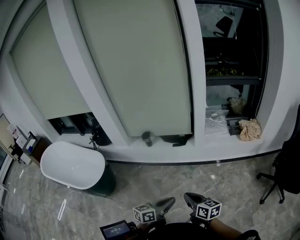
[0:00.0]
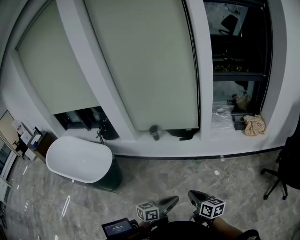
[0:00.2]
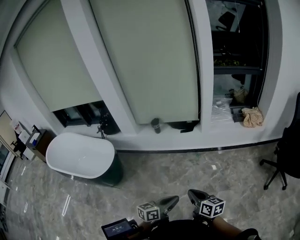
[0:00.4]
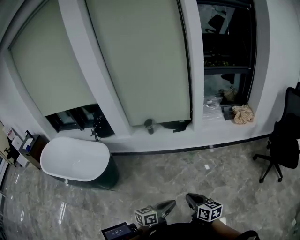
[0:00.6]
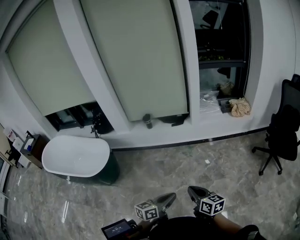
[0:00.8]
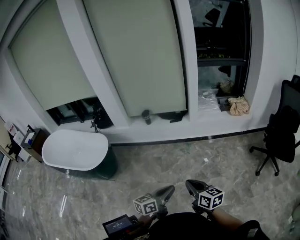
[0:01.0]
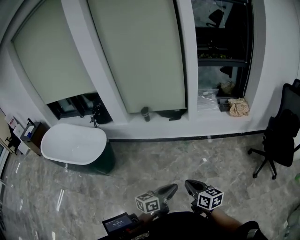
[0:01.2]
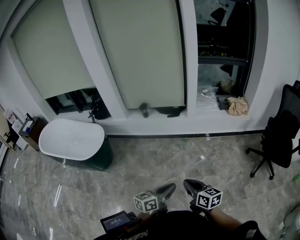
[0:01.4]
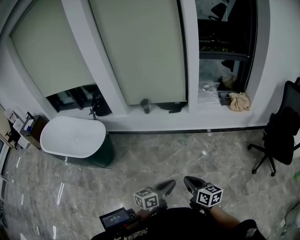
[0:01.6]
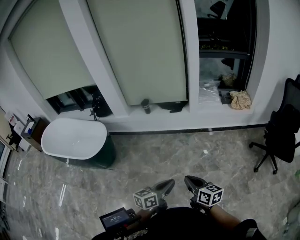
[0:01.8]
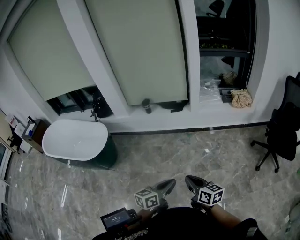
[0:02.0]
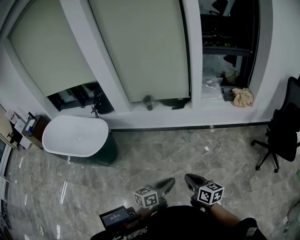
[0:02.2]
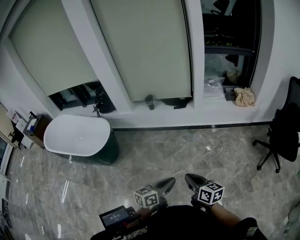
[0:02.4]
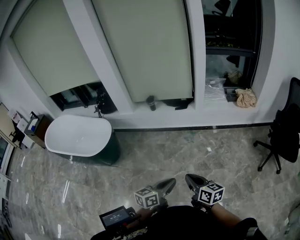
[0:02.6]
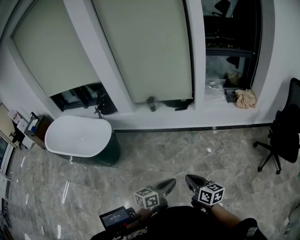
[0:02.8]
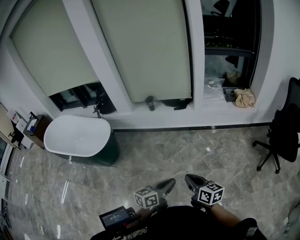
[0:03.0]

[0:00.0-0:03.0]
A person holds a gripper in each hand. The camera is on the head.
0:00.0 to 0:01.6: Both grippers travel together backward, approximately 20 cm.
0:01.6 to 0:03.0: There are only small adjustments of the grippers.

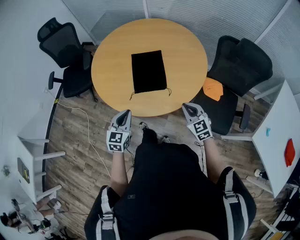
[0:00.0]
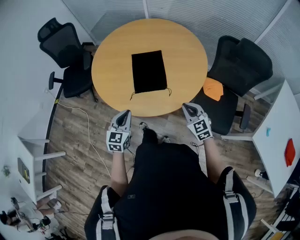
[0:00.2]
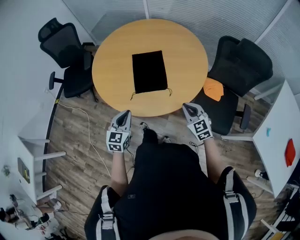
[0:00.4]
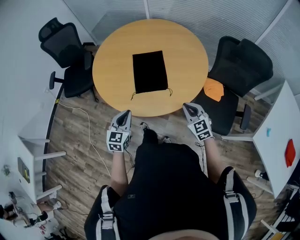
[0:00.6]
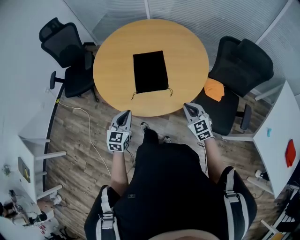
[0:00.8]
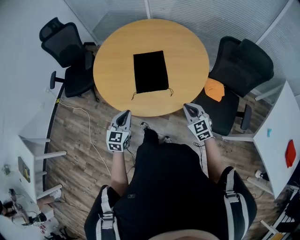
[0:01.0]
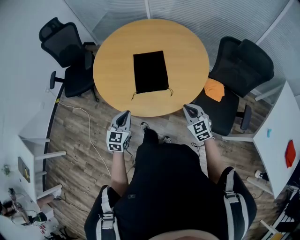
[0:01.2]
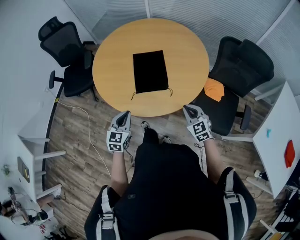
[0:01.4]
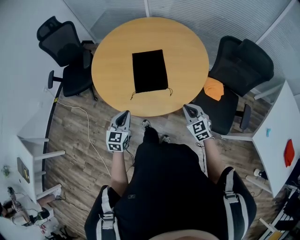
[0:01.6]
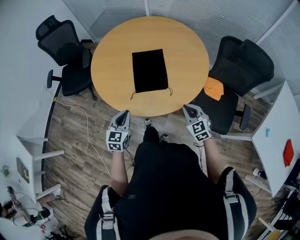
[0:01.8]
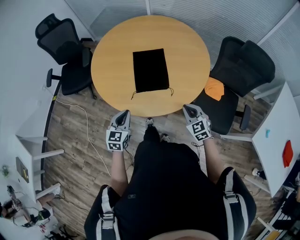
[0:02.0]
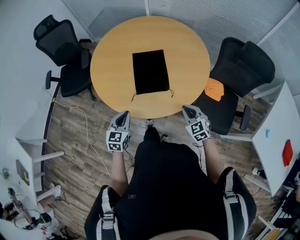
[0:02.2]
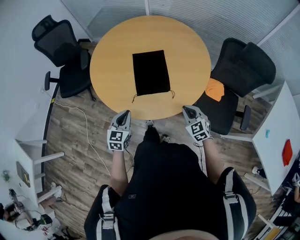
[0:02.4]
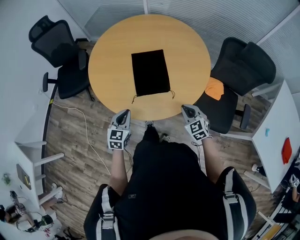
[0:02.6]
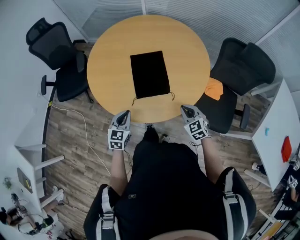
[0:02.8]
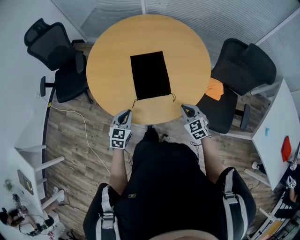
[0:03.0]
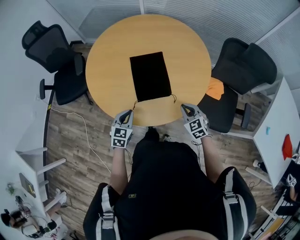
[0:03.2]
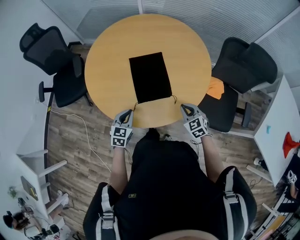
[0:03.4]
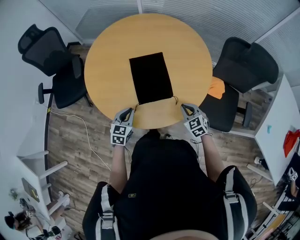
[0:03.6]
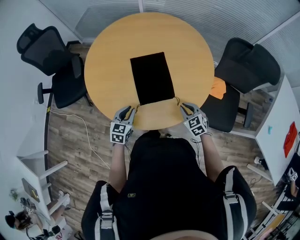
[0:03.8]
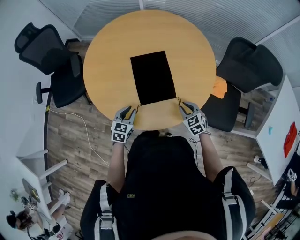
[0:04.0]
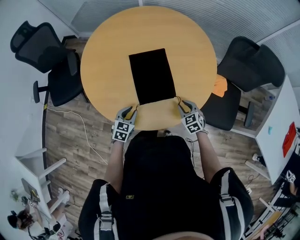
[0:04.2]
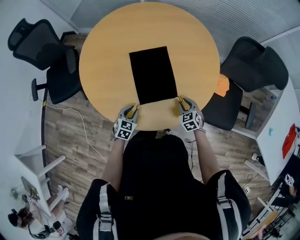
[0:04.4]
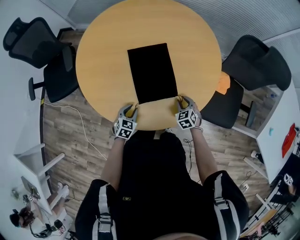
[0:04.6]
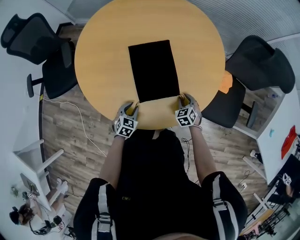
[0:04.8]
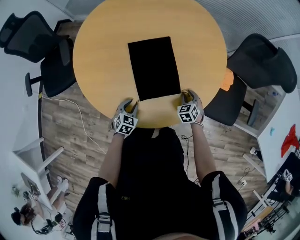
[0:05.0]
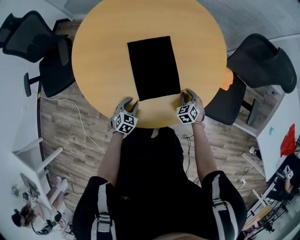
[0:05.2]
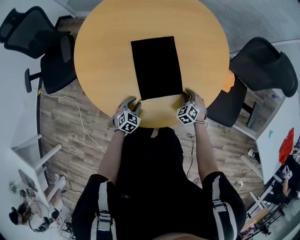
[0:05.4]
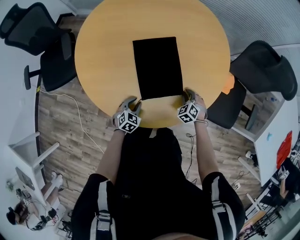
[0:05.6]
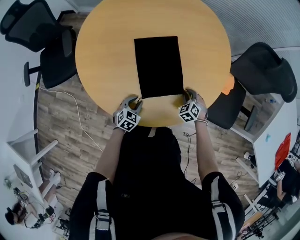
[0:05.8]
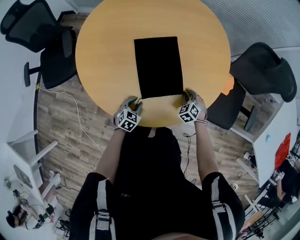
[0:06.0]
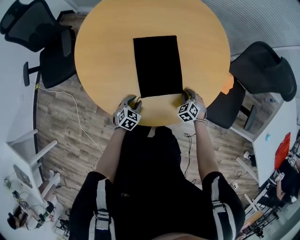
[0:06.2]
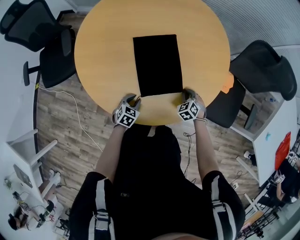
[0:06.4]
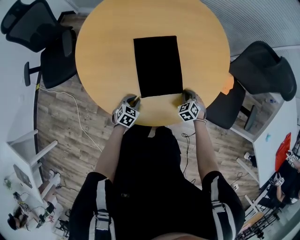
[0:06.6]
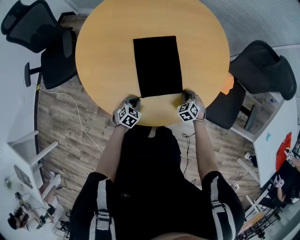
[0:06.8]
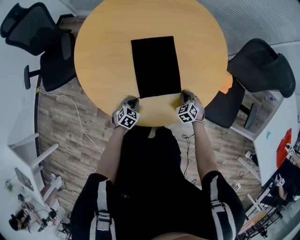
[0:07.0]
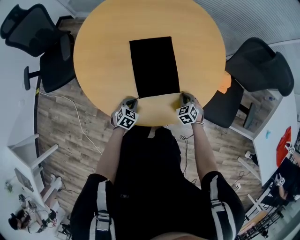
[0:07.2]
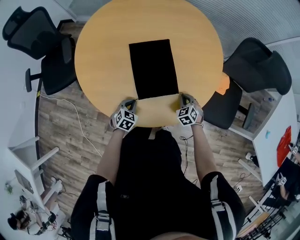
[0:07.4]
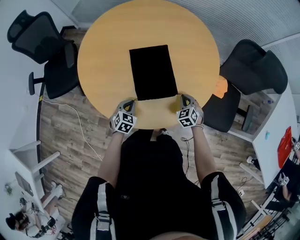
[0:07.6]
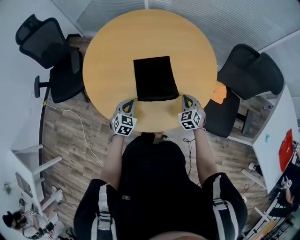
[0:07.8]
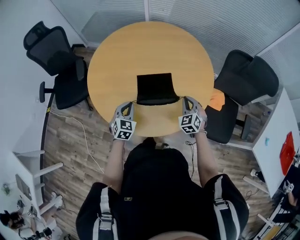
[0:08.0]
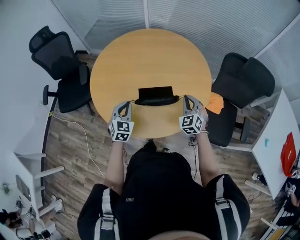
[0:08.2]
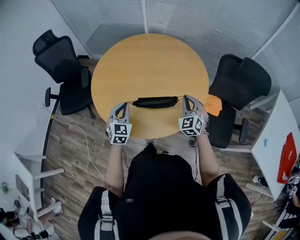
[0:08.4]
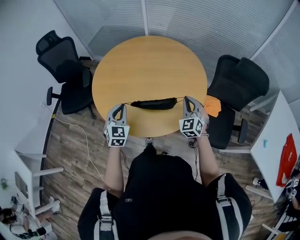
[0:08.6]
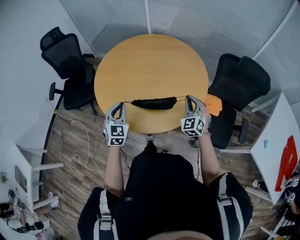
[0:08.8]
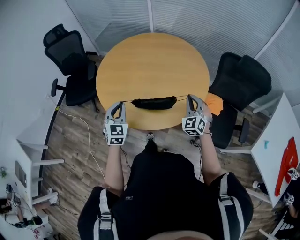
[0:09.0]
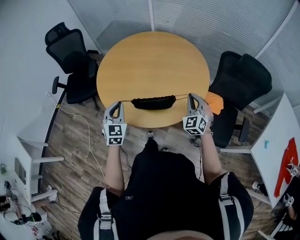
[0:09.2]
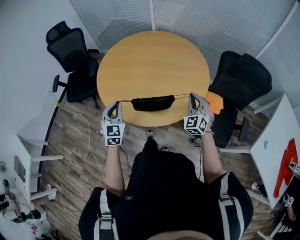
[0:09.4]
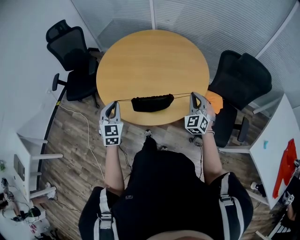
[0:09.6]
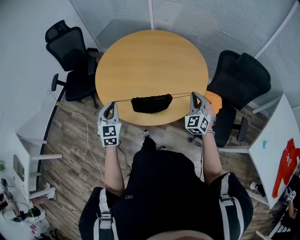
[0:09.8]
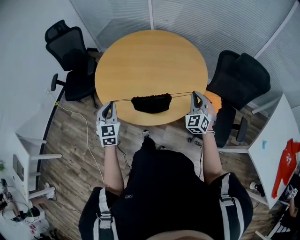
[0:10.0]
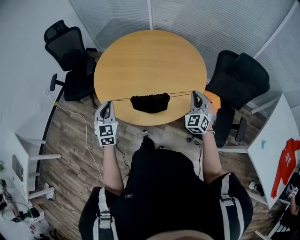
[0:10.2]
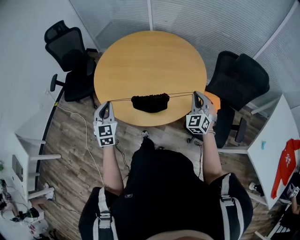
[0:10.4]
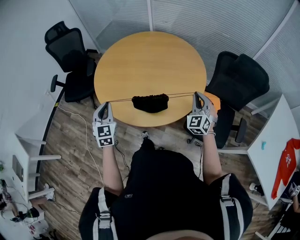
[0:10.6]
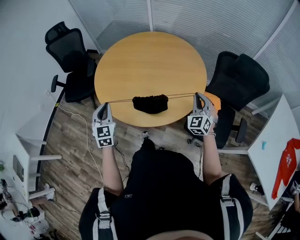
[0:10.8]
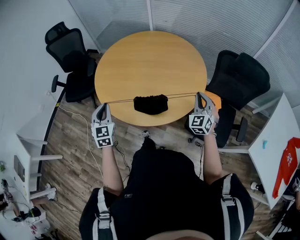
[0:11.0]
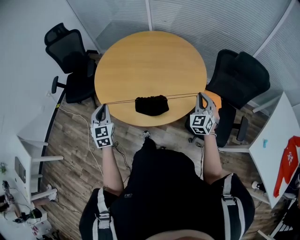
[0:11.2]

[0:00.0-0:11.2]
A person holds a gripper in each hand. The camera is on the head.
0:00.0 to 0:01.6: There are only small adjustments of the grippers.
0:01.6 to 0:03.2: Both grippers travel together forward and downward, roughly 10 cm.
0:03.2 to 0:04.8: The left gripper is displaced downward by some 20 cm. The right gripper is displaced downward and forward by some 20 cm, changes its angle by some 30 degrees, and opens up.
0:04.8 to 0:06.4: The right gripper closes.
0:06.4 to 0:08.0: The grippers both shift upward by about 20 cm. The left gripper rotates about 30 degrees, and closes its fingers, while the right gripper turns by approximately 30 degrees.
0:08.0 to 0:09.6: The left gripper is displaced upward and backward by roughly 20 cm, and swivels roughly 20 degrees, while the right gripper shifts approximately 15 cm upward, backward and to the right.
0:09.6 to 0:11.2: The right gripper moves to the right, roughly 5 cm.

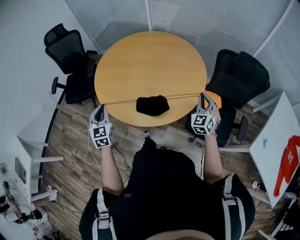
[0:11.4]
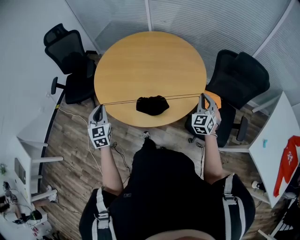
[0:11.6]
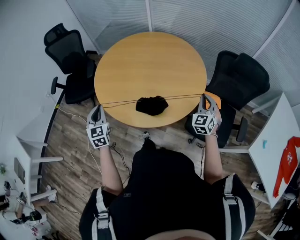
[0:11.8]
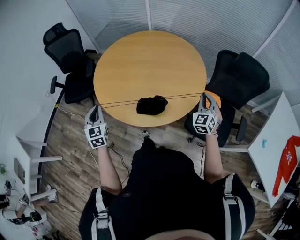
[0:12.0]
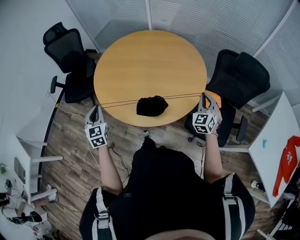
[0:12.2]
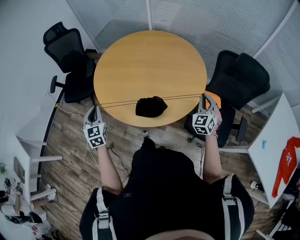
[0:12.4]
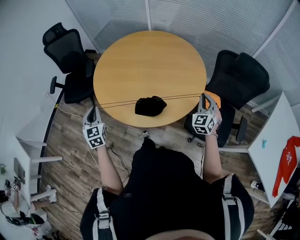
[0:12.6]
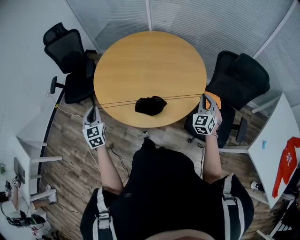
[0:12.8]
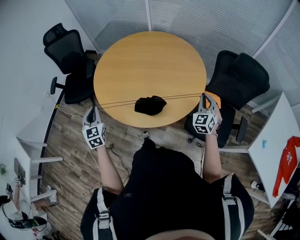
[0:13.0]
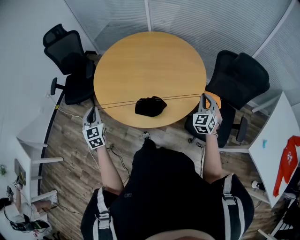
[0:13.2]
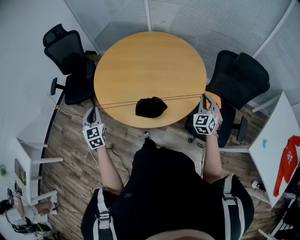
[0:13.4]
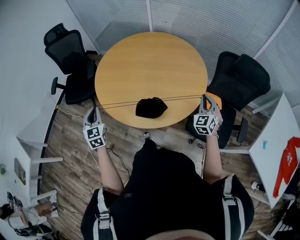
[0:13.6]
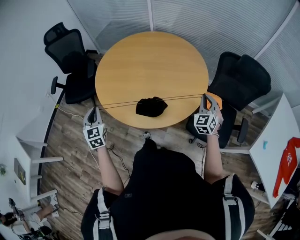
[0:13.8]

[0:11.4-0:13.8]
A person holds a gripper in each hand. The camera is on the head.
0:11.4 to 0:12.6: The grippers stay close to where they were, moving slightly.
0:12.6 to 0:13.8: There are only small adjustments of the grippers.

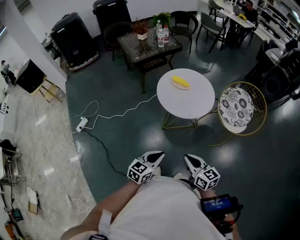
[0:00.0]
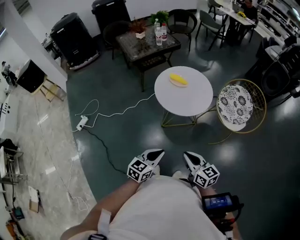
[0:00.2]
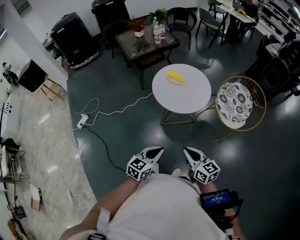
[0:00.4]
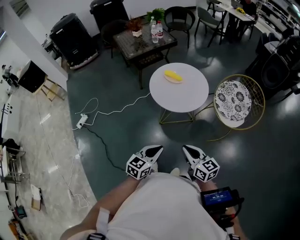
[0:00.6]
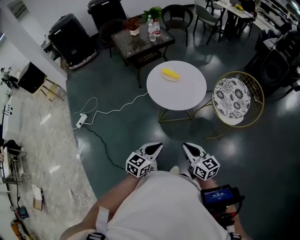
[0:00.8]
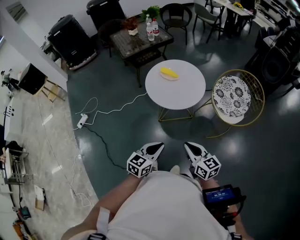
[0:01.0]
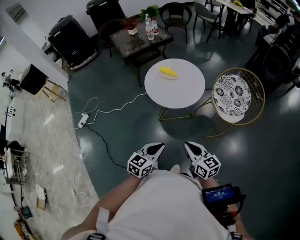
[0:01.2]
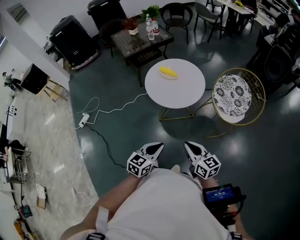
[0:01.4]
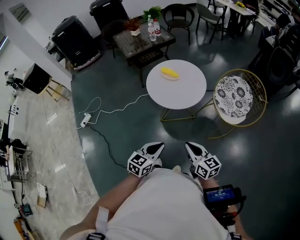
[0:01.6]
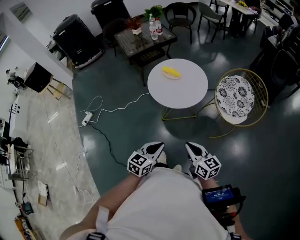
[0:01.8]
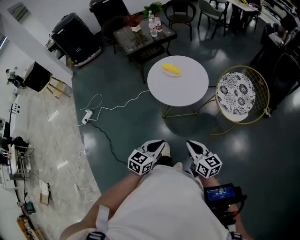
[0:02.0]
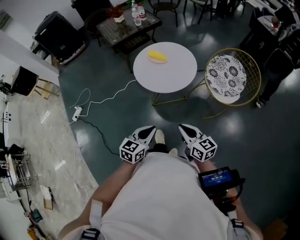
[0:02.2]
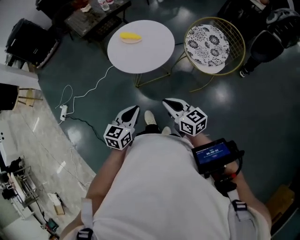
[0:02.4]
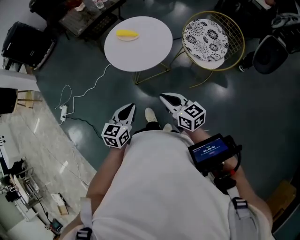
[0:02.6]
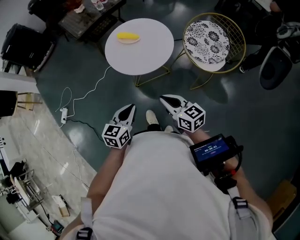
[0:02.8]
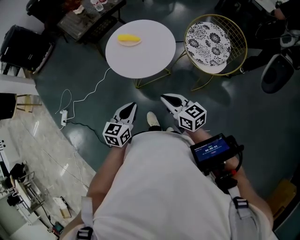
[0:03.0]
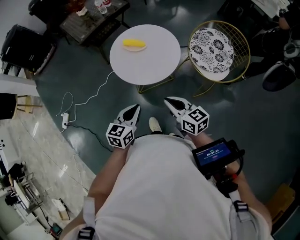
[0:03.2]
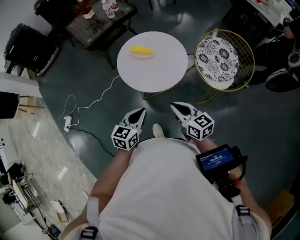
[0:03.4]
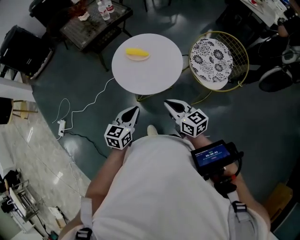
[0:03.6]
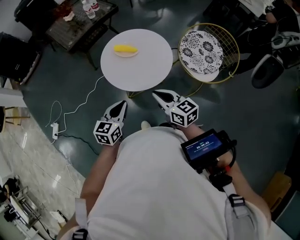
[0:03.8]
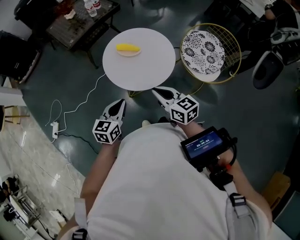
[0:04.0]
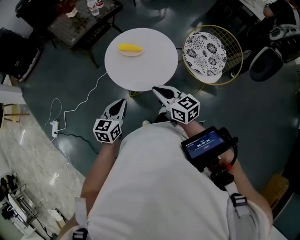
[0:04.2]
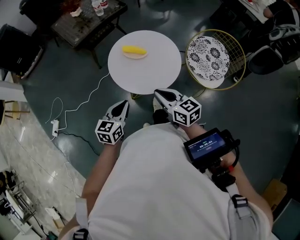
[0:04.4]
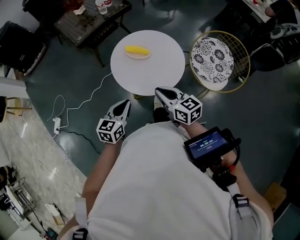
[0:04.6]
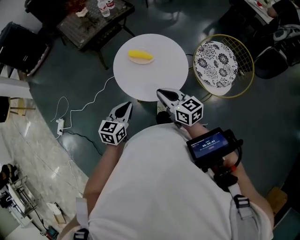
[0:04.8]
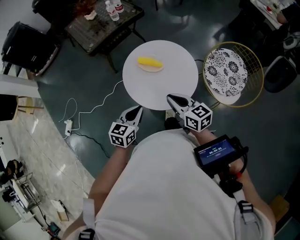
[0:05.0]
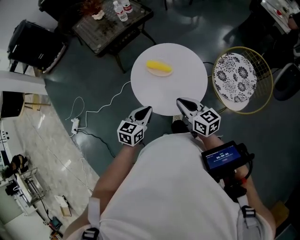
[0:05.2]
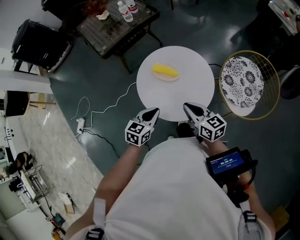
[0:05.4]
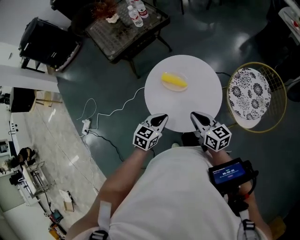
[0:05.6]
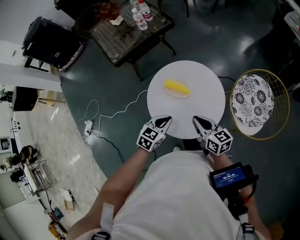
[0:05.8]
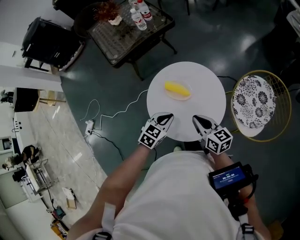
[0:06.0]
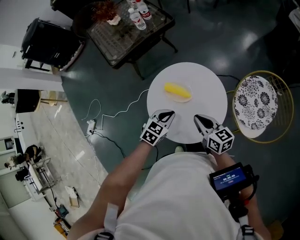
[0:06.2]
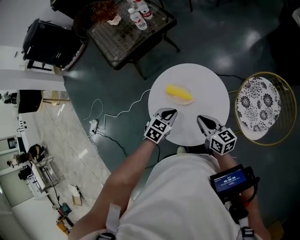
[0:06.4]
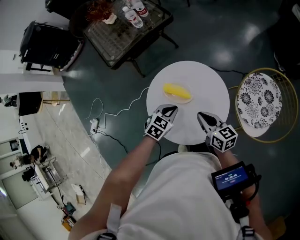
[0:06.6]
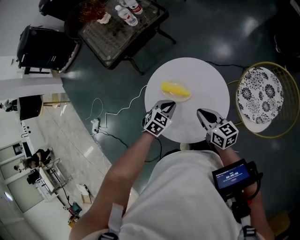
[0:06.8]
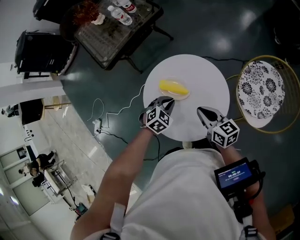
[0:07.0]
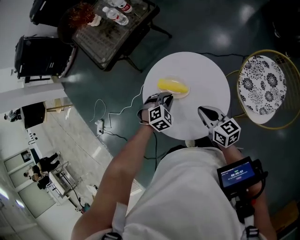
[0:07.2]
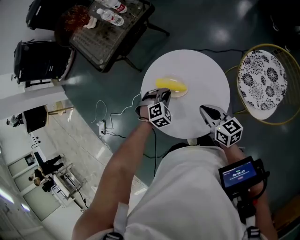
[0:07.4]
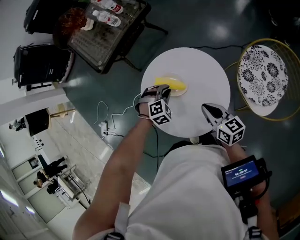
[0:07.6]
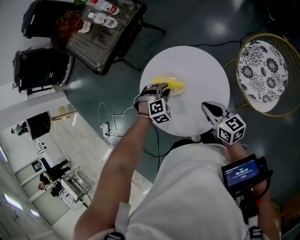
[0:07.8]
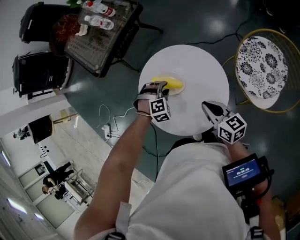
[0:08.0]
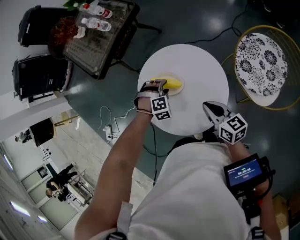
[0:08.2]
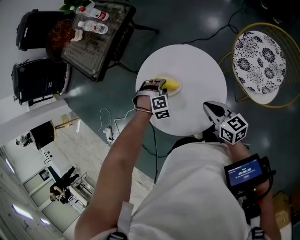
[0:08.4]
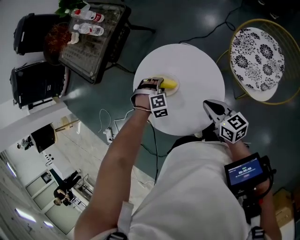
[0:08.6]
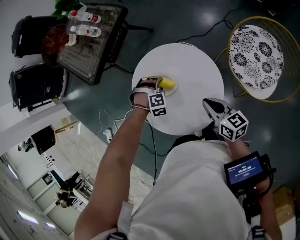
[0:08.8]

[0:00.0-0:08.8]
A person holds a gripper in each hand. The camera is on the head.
0:00.0 to 0:01.4: Both grippers move to the right, roughly 10 cm.
0:01.4 to 0:03.0: Both grippers move forward, about 10 cm.
0:03.0 to 0:04.4: Both grippers travel together forward and to the left, approximately 15 cm.
0:04.4 to 0:05.8: Both grippers move forward, about 20 cm.
0:05.8 to 0:07.4: The right gripper heads forward, covering roughly 5 cm; the left gripper is displaced forward and downward by approximately 15 cm, and rolls clockwise, seen from behind, by some 50 degrees.
0:07.4 to 0:08.8: The right gripper moves roughly 5 cm; the left gripper moves downward, approximately 5 cm, swivels approximately 30 degrees, and opens.
